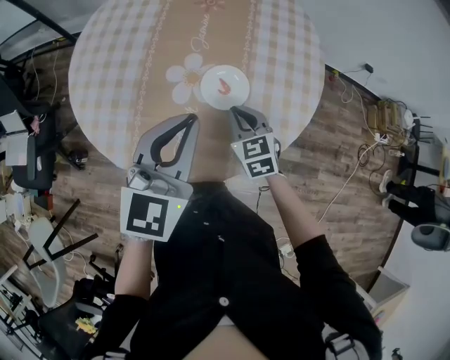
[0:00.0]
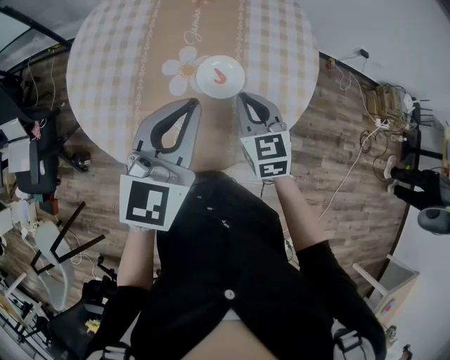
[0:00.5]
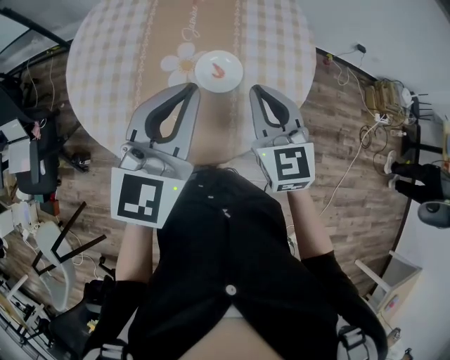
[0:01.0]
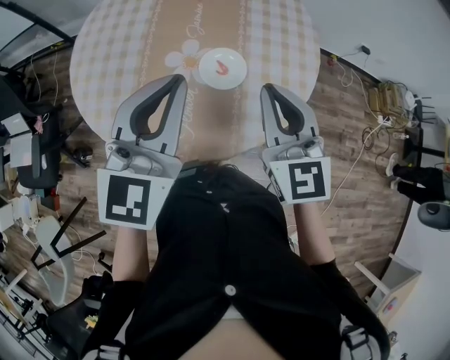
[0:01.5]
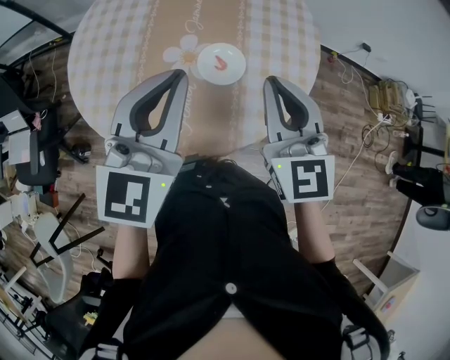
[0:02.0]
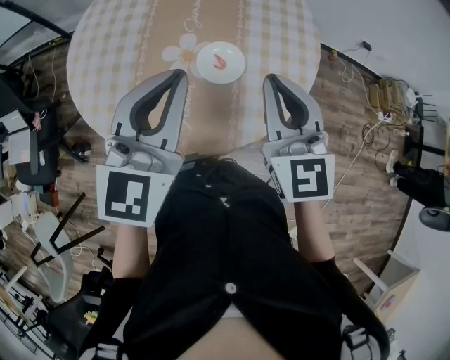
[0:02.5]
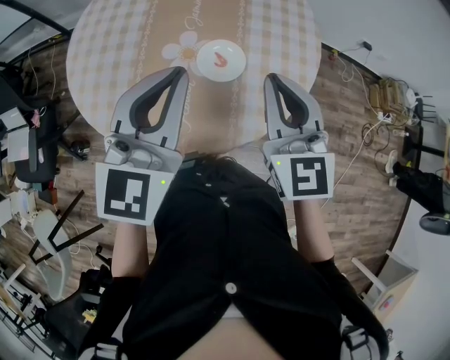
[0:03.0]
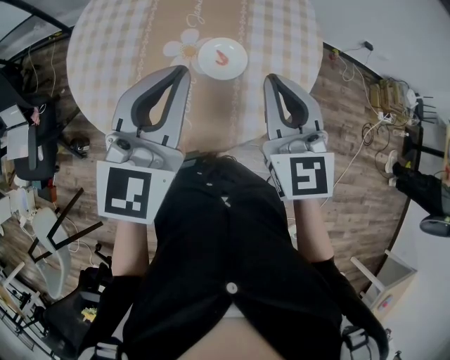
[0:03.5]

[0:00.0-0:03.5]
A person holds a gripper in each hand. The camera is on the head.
0:00.0 to 0:02.0: The left gripper goes approximately 5 cm upward; the right gripper goes roughly 25 cm upward, and rotates about 30 degrees.
0:02.0 to 0:03.5: Neither gripper changes place.

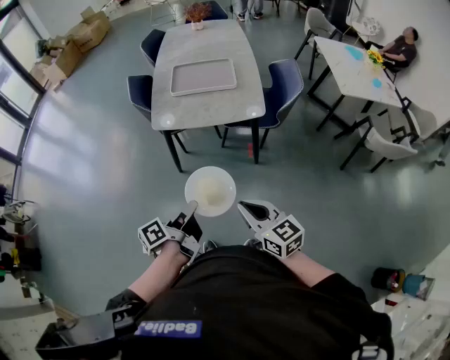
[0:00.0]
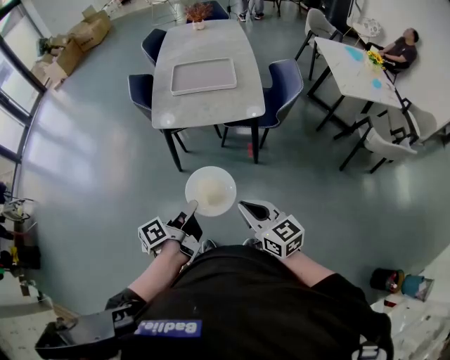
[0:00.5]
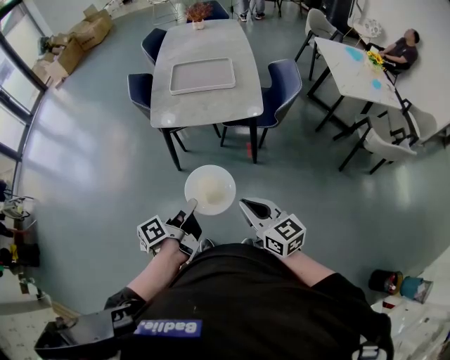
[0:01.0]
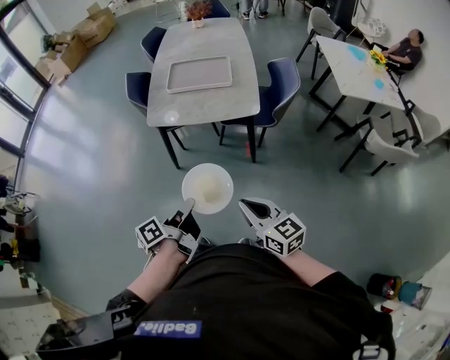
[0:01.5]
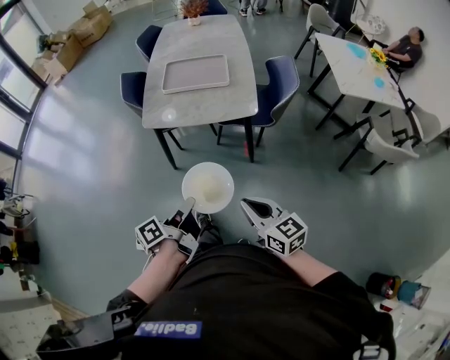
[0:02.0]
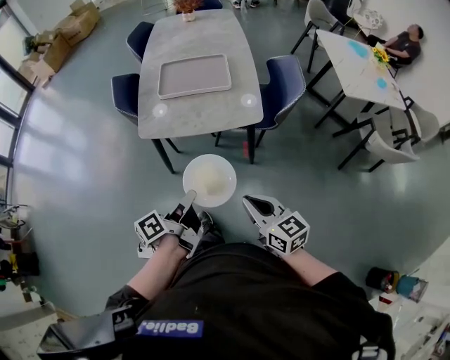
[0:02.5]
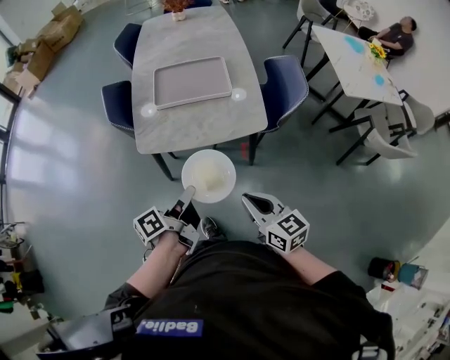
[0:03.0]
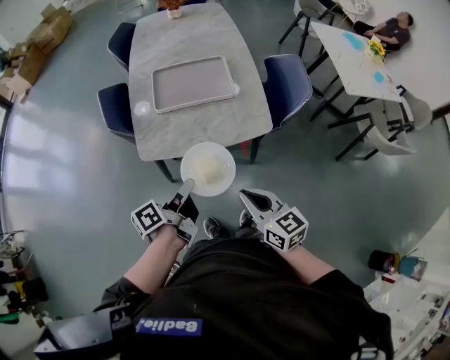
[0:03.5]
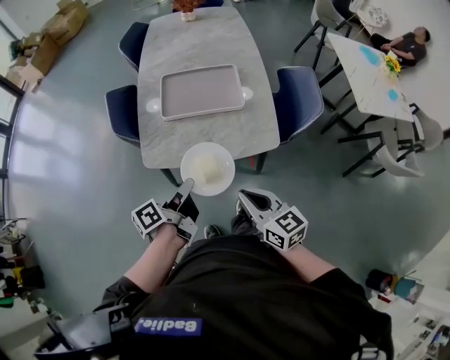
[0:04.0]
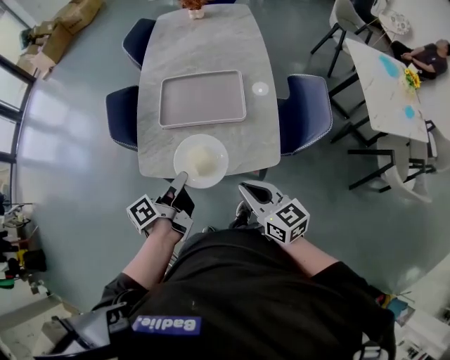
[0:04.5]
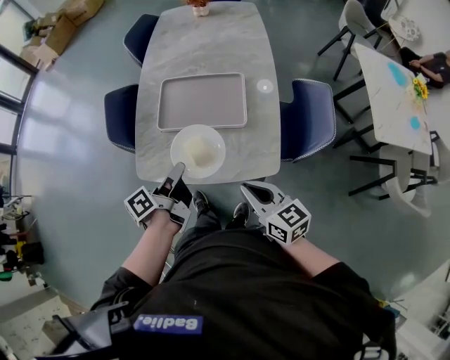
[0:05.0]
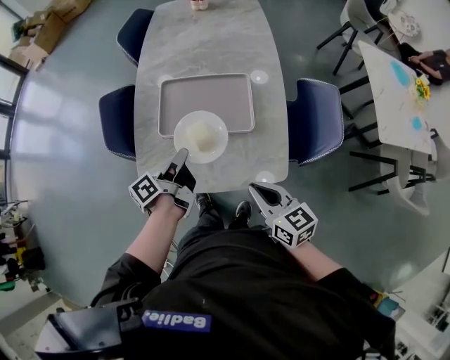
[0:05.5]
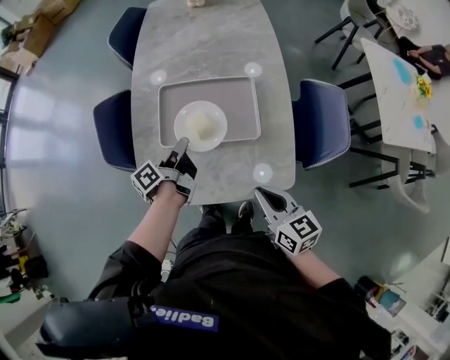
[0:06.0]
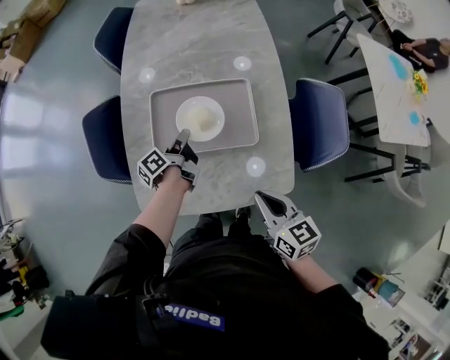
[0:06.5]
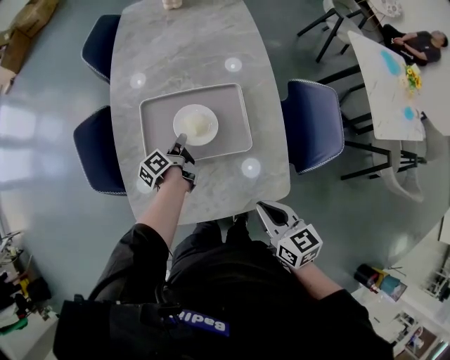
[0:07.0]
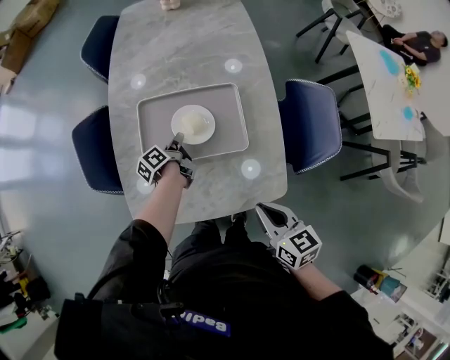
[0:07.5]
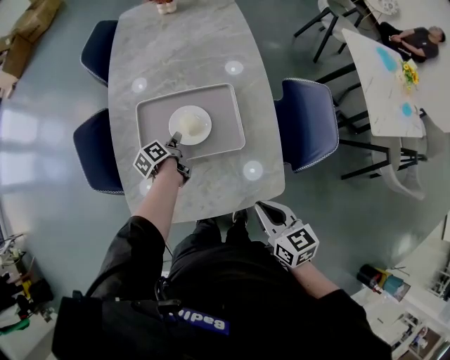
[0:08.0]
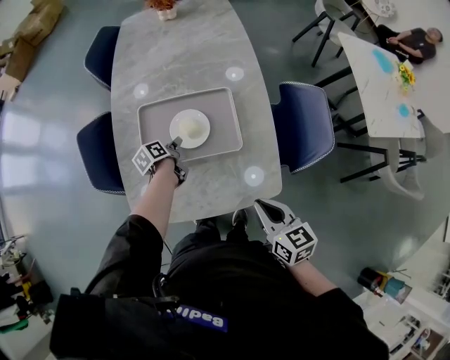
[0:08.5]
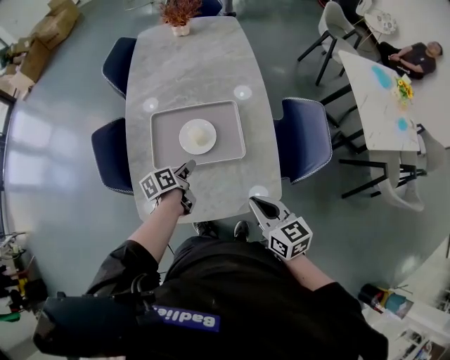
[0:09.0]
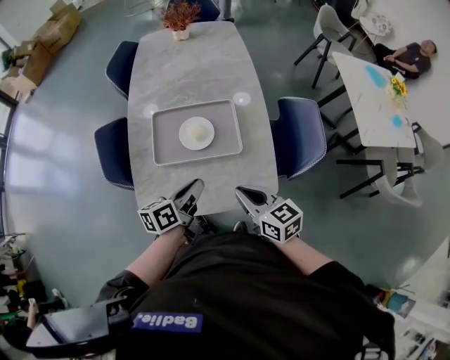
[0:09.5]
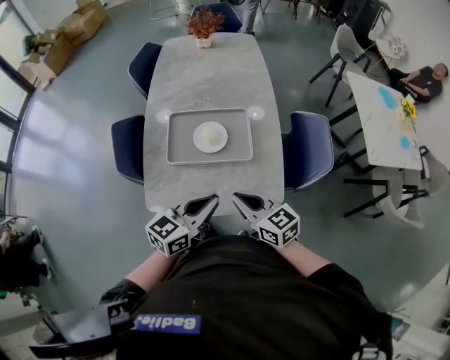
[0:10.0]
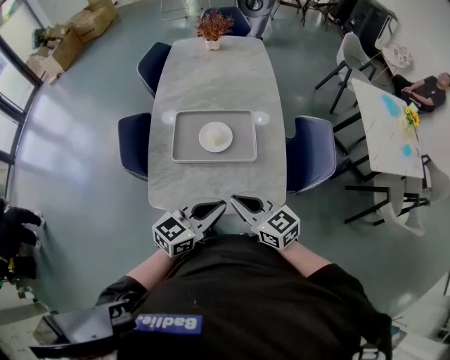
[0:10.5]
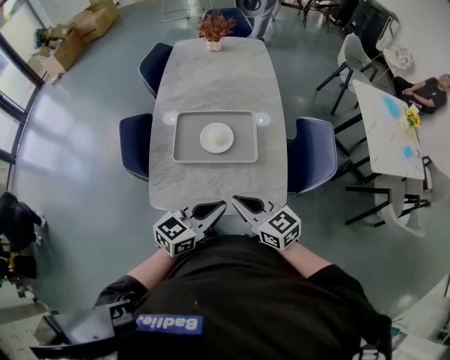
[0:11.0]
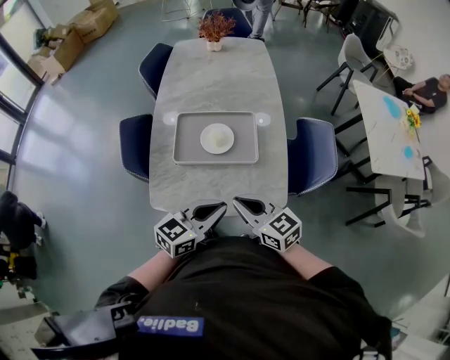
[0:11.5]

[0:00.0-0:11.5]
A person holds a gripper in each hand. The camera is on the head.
0:00.0 to 0:02.0: The right gripper shifts by approximately 5 cm.
0:02.0 to 0:04.0: The right gripper ends up about 30 cm from where it was.
0:04.0 to 0:06.0: The right gripper changes place by approximately 20 cm.
0:07.5 to 0:09.5: The right gripper travels upward by some 5 cm.
0:09.5 to 0:11.5: The right gripper changes place by roughly 5 cm.

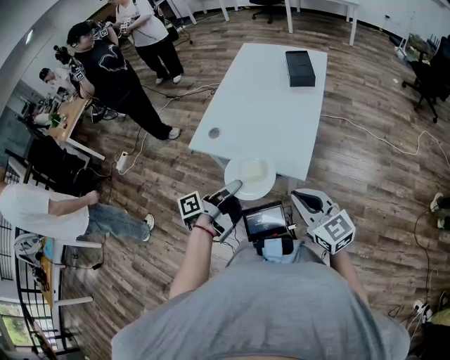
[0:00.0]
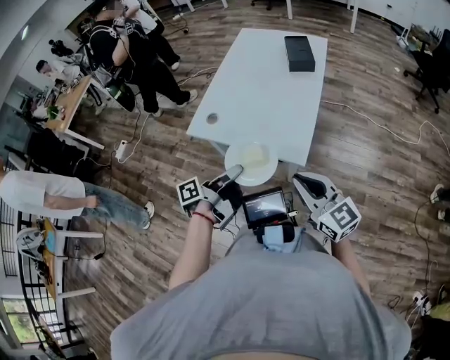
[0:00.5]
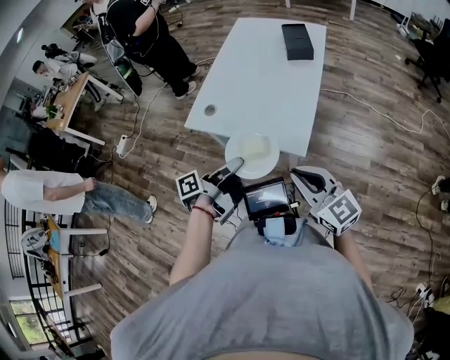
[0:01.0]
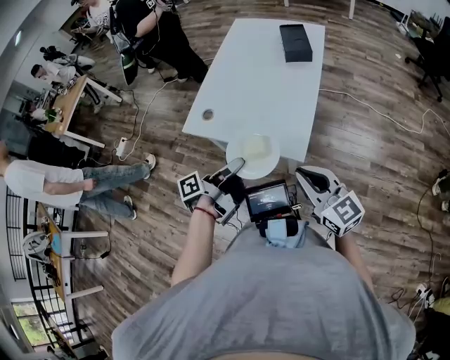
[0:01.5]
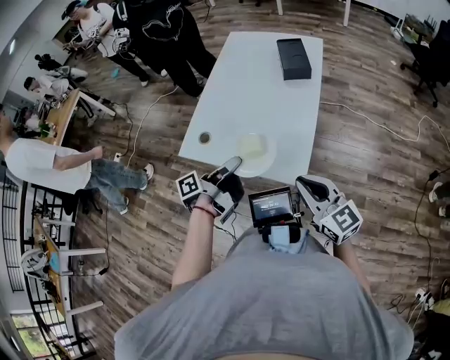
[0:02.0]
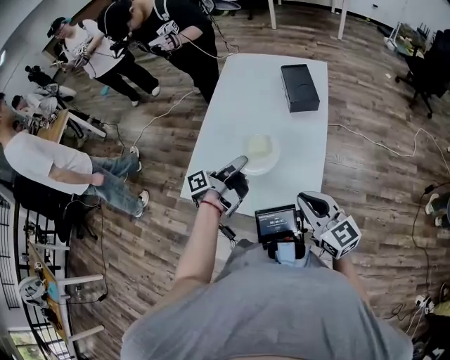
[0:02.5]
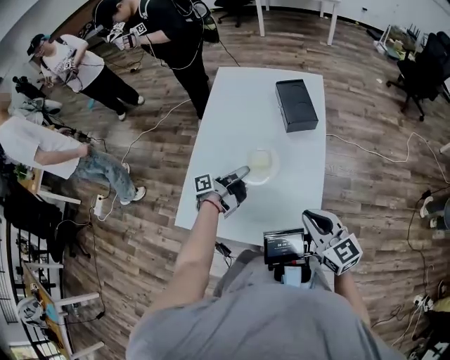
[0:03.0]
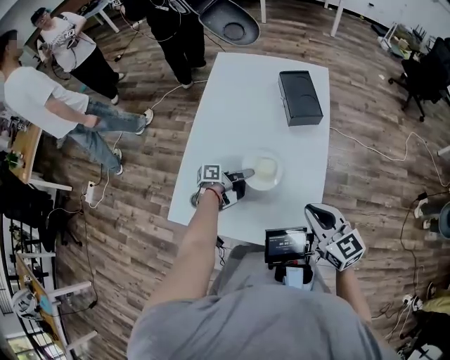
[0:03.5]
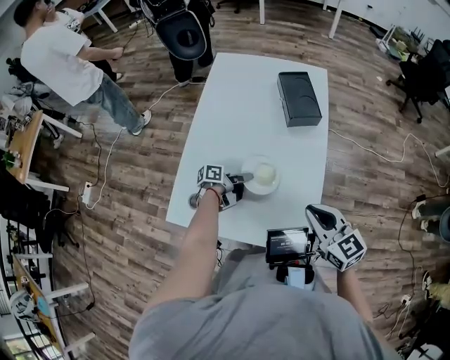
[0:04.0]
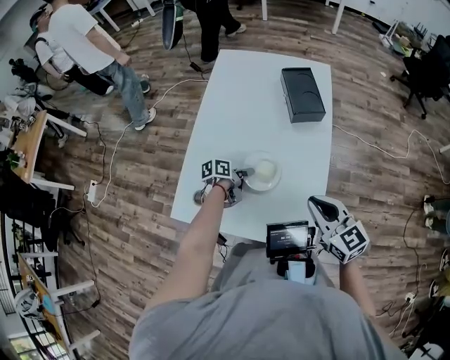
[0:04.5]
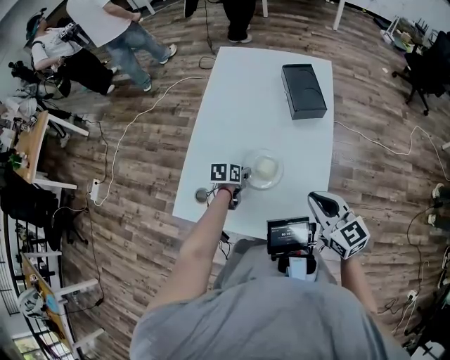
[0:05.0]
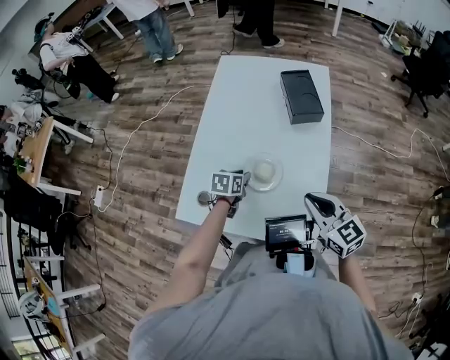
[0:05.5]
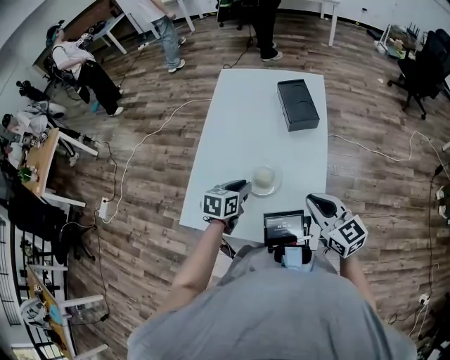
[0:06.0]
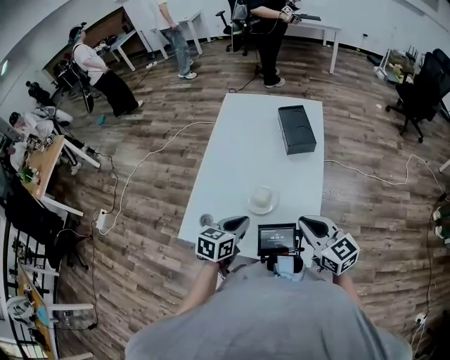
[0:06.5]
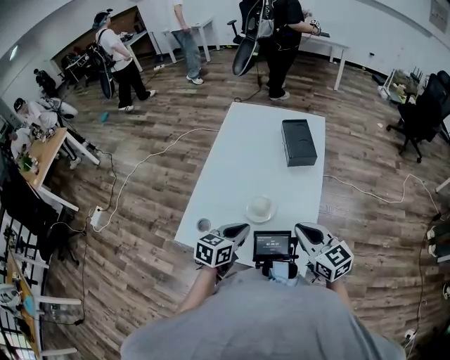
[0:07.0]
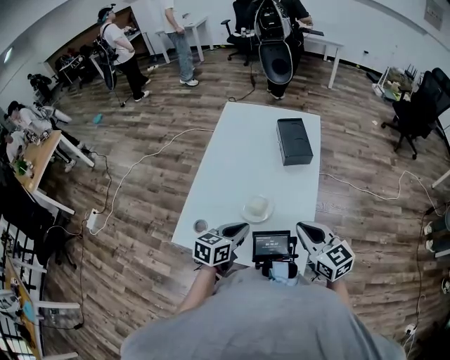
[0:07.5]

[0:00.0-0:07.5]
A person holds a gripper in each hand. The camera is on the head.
0:00.0 to 0:02.0: The right gripper shifts by roughly 10 cm.
0:02.0 to 0:04.0: The right gripper moves approximately 20 cm.

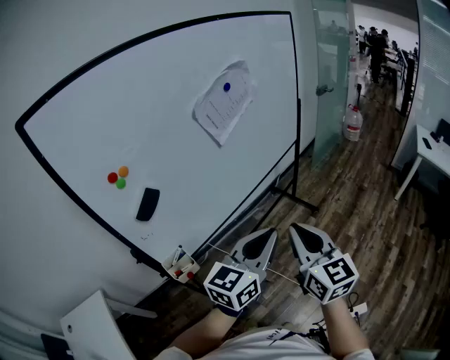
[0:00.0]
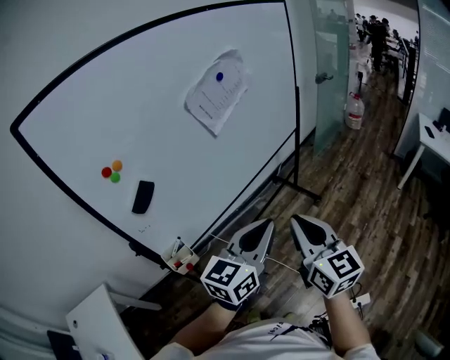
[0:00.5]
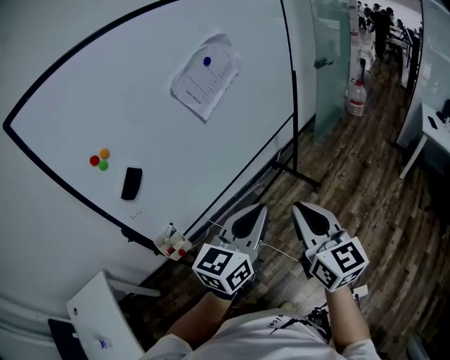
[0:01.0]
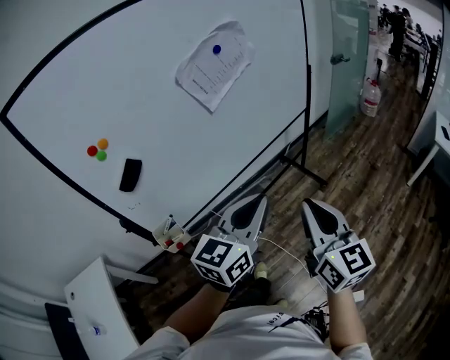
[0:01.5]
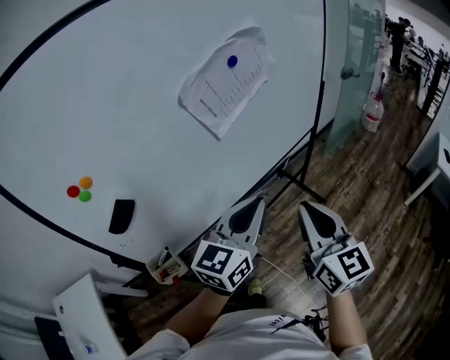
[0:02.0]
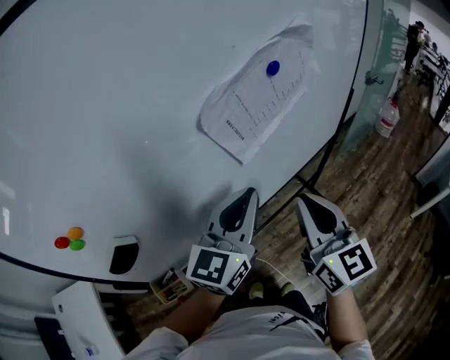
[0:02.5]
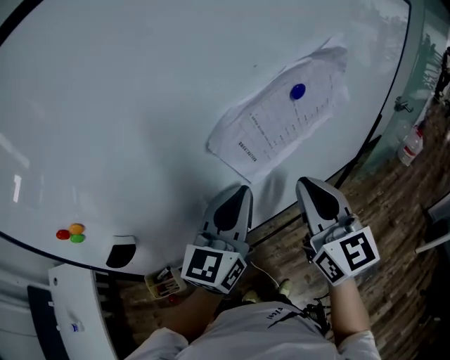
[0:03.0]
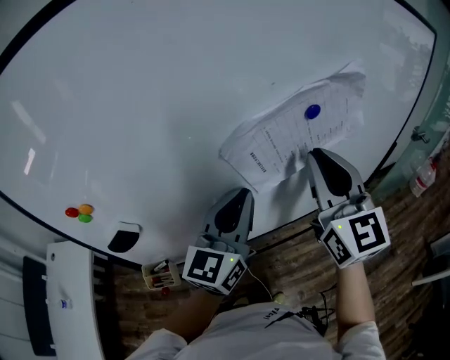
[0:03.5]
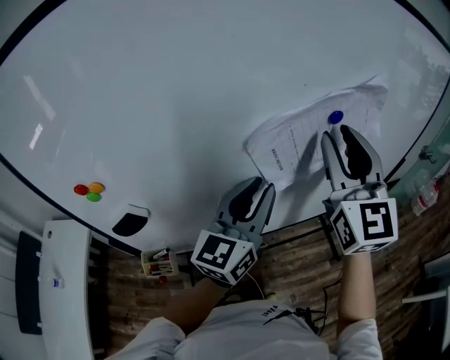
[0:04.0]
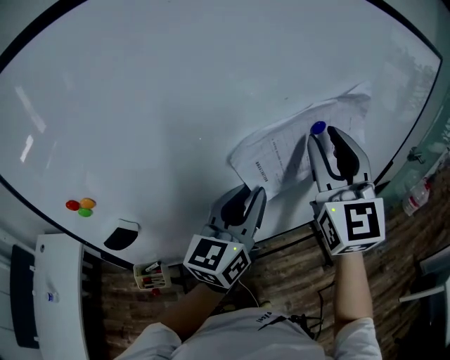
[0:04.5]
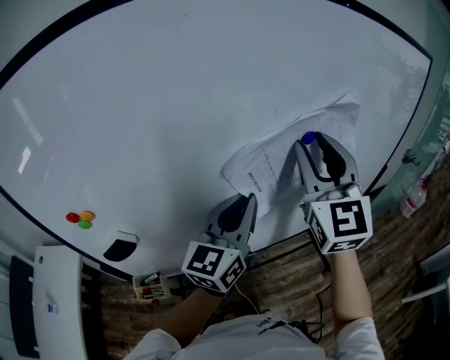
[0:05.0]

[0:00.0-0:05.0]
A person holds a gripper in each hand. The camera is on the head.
0:00.0 to 0:02.5: The right gripper heads forward, covering some 30 cm. The left gripper is displaced forward and to the left by approximately 30 cm, and rotates roughly 20 degrees.
0:02.5 to 0:05.0: The right gripper is displaced upward and forward by some 25 cm, rotates approximately 30 degrees, and opens its fingers; the left gripper heads forward, covering approximately 10 cm.
